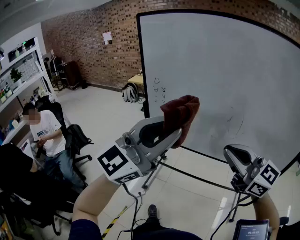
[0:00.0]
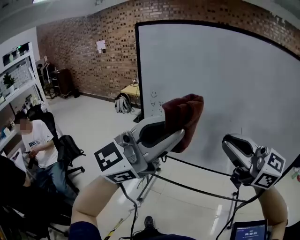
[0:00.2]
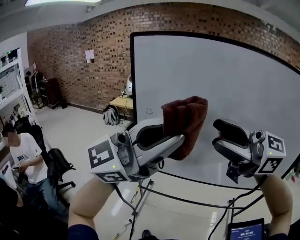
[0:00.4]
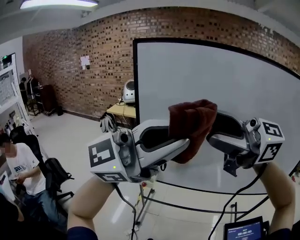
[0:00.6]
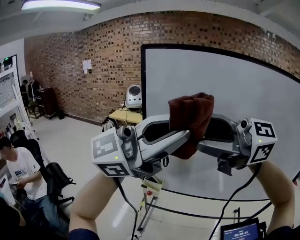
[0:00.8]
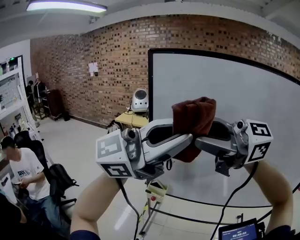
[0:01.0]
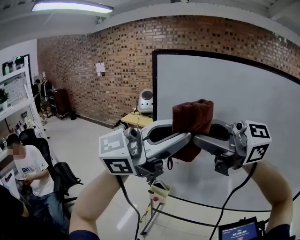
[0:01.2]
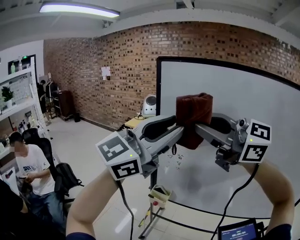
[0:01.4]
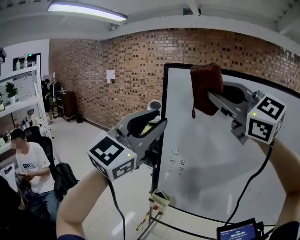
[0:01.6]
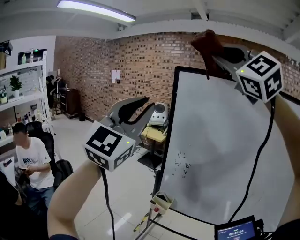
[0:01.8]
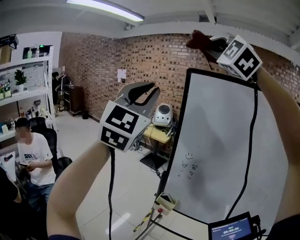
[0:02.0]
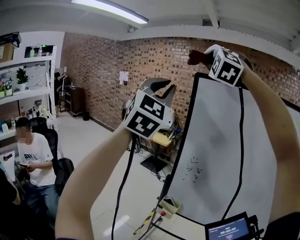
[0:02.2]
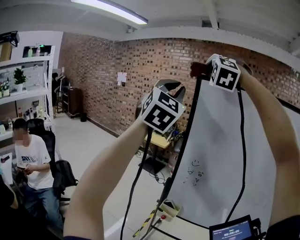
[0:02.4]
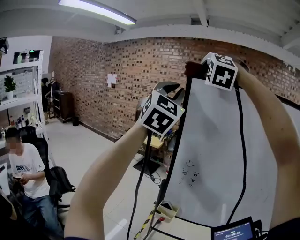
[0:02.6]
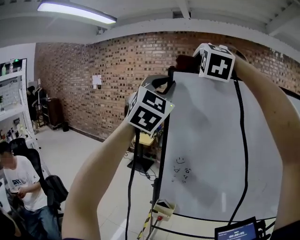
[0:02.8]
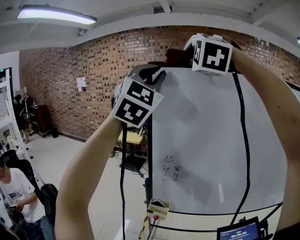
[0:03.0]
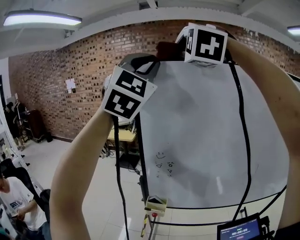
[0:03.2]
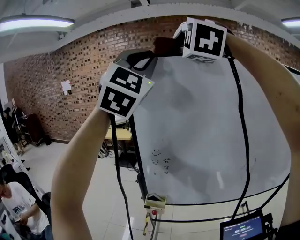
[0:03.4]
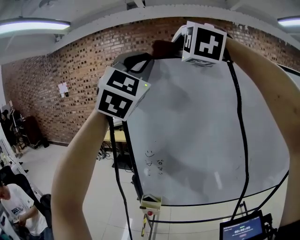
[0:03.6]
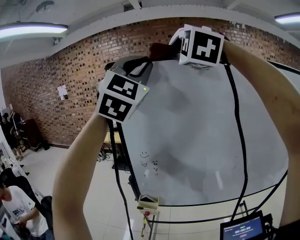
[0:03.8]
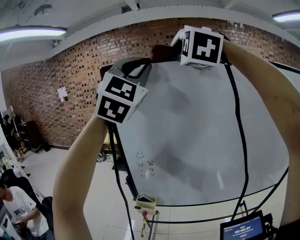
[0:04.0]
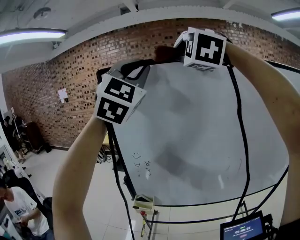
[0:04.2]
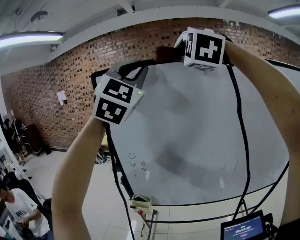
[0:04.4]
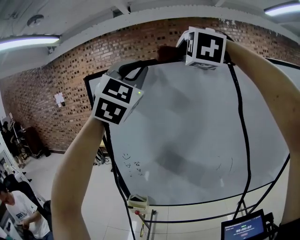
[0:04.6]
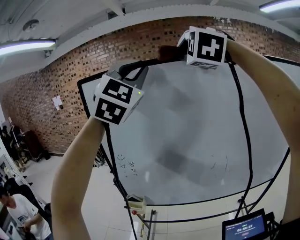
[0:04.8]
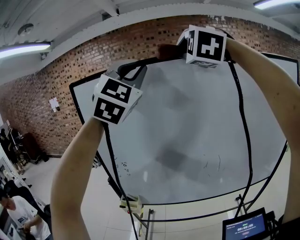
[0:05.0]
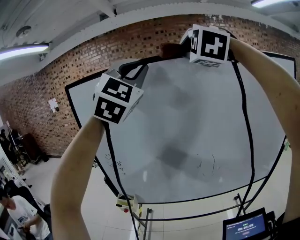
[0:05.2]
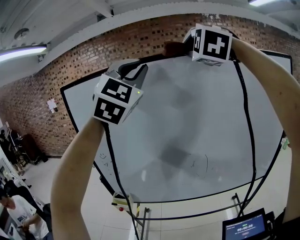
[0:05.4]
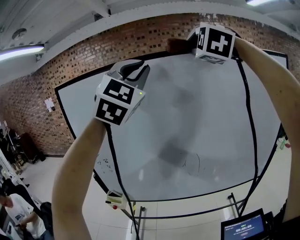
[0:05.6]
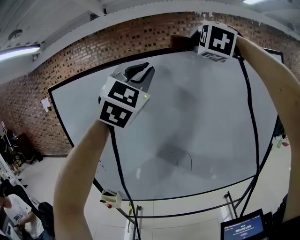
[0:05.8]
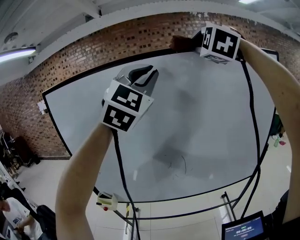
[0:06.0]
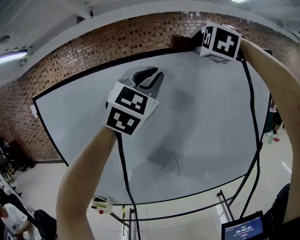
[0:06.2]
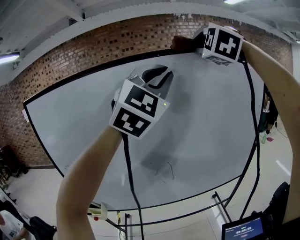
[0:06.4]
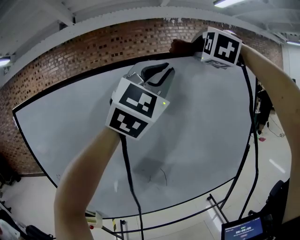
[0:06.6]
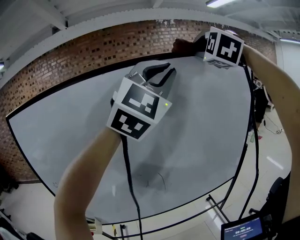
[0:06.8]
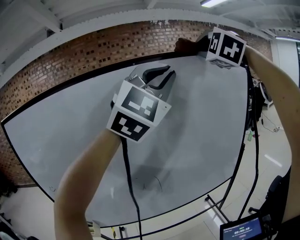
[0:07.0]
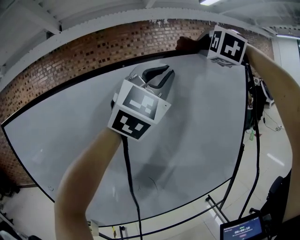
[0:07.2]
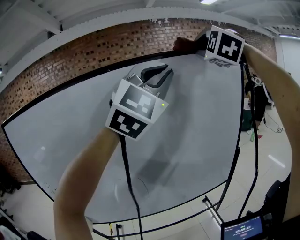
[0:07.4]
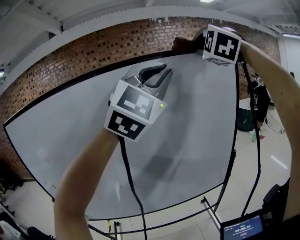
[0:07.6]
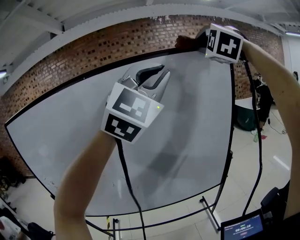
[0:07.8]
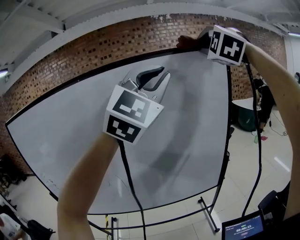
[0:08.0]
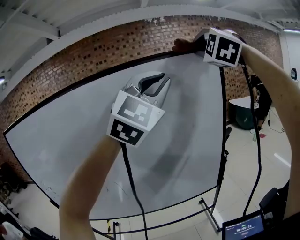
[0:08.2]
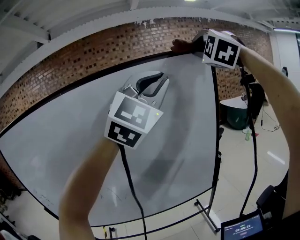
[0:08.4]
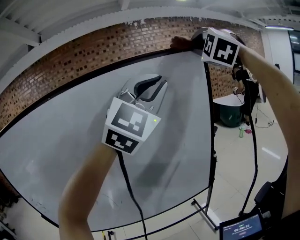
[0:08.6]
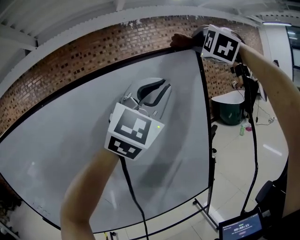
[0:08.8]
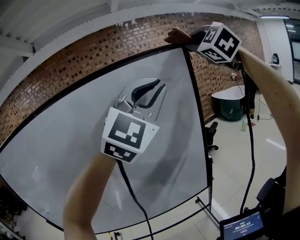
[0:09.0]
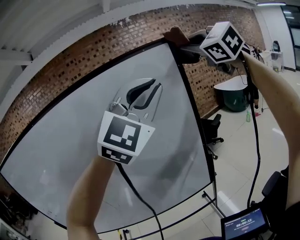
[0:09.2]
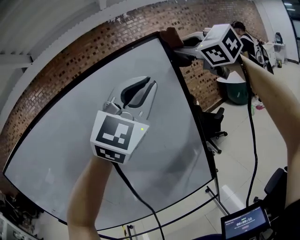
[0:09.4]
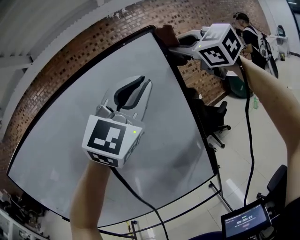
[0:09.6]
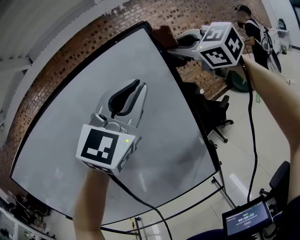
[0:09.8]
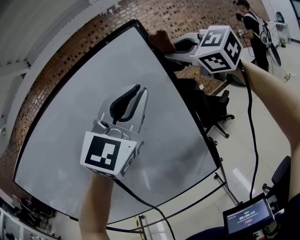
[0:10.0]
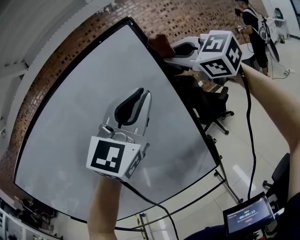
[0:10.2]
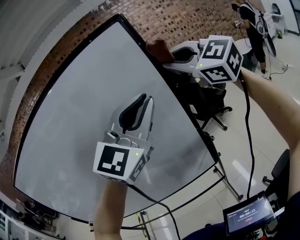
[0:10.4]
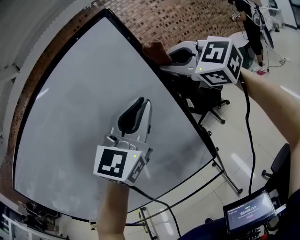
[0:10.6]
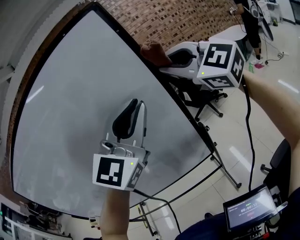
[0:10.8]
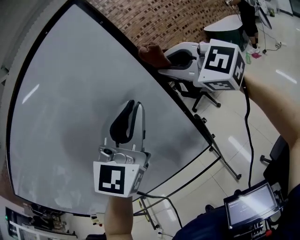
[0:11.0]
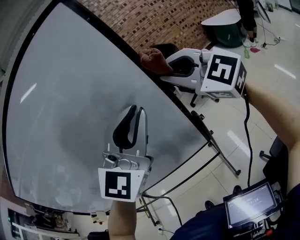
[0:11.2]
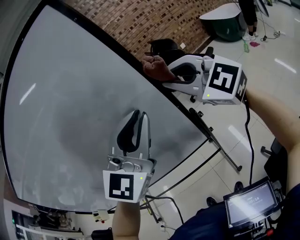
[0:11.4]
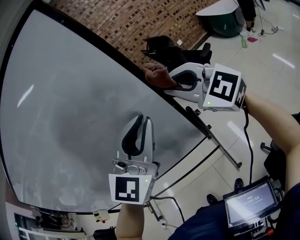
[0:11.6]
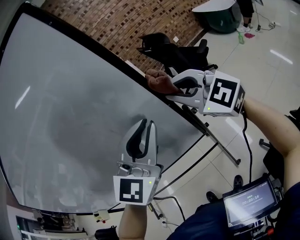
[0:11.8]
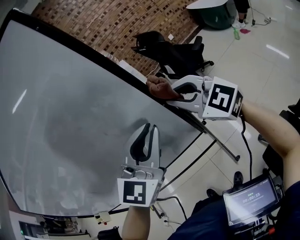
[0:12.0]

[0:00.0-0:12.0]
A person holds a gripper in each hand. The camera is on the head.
0:00.0 to 0:01.6: The left gripper shifts by about 30 cm, and turns by about 20 degrees; the right gripper goes some 30 cm upward, rotates some 30 degrees, and opens and closes again.
0:01.6 to 0:03.0: The two grippers go about 20 cm forward and upward. The right gripper turns by about 70 degrees. The left gripper changes its angle by about 30 degrees.
0:03.0 to 0:04.4: Both grippers travel together to the right, approximately 15 cm.
0:04.4 to 0:06.0: Both grippers travel together to the right, some 30 cm.
0:06.0 to 0:07.6: The right gripper goes some 25 cm to the right and forward, while the left gripper goes roughly 25 cm to the right.
0:07.6 to 0:09.0: Both grippers travel together to the right and forward, about 20 cm. The right gripper swivels some 30 degrees.
0:09.0 to 0:10.4: The left gripper is displaced downward and to the right by roughly 10 cm; the right gripper is displaced downward by some 15 cm, and turns by about 40 degrees.
0:10.4 to 0:12.0: Both grippers move downward, about 25 cm.

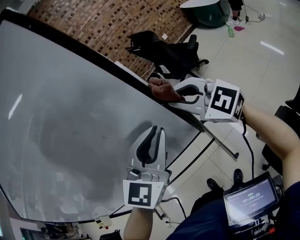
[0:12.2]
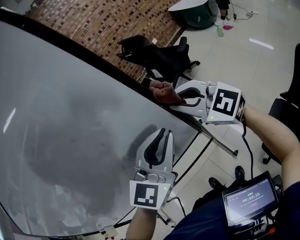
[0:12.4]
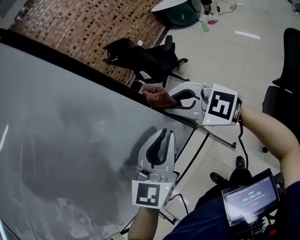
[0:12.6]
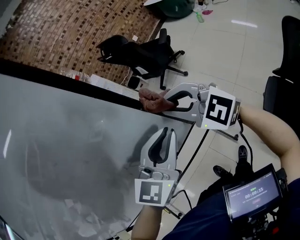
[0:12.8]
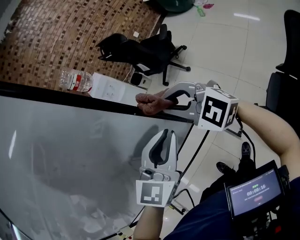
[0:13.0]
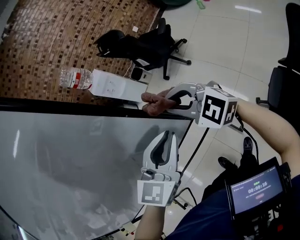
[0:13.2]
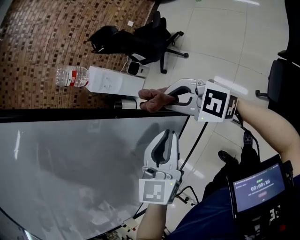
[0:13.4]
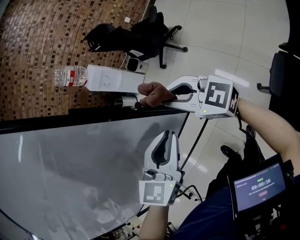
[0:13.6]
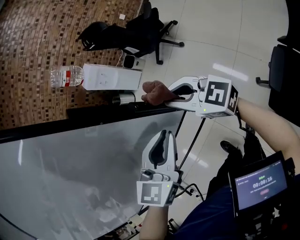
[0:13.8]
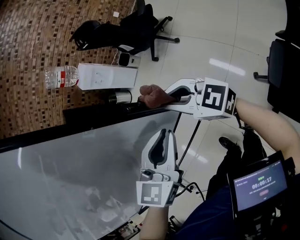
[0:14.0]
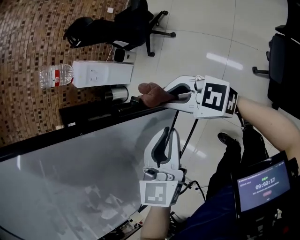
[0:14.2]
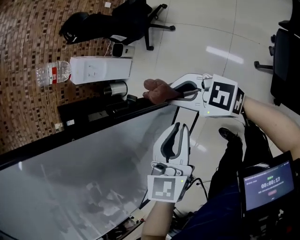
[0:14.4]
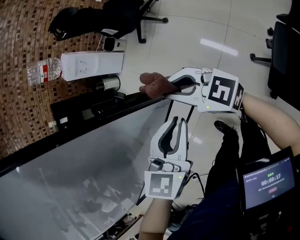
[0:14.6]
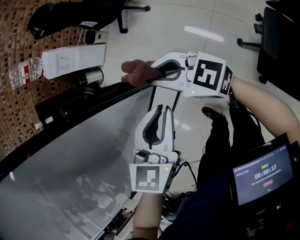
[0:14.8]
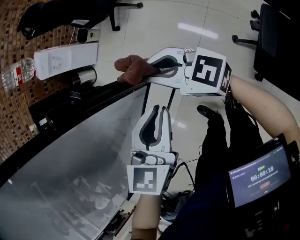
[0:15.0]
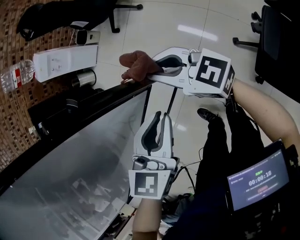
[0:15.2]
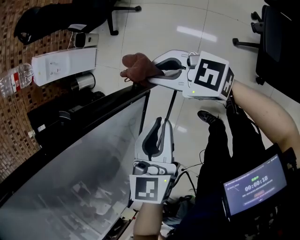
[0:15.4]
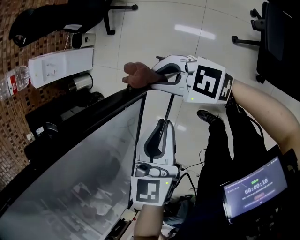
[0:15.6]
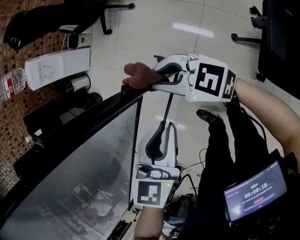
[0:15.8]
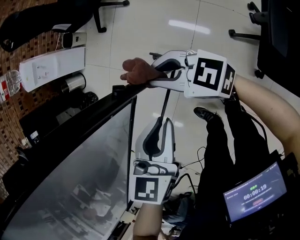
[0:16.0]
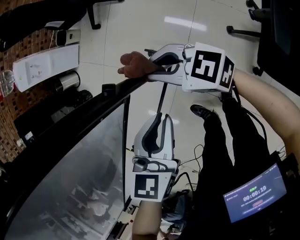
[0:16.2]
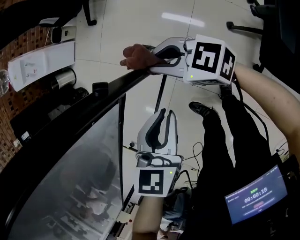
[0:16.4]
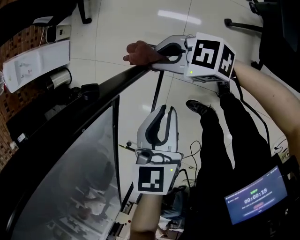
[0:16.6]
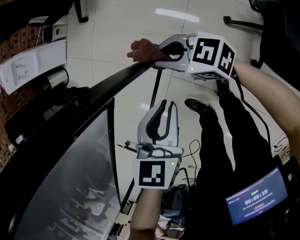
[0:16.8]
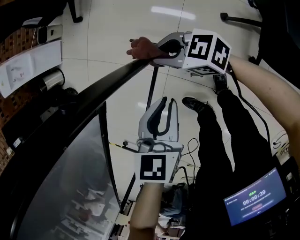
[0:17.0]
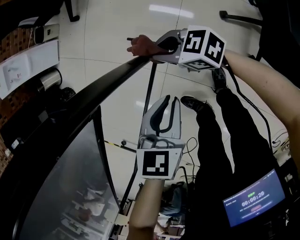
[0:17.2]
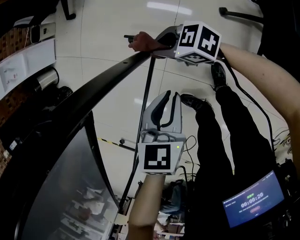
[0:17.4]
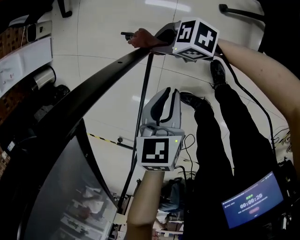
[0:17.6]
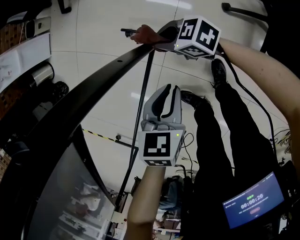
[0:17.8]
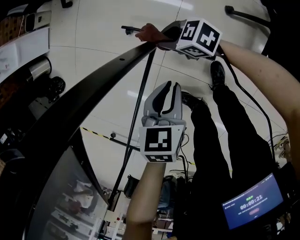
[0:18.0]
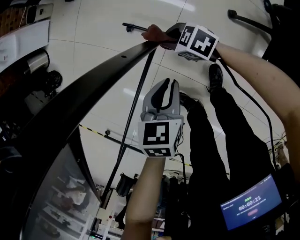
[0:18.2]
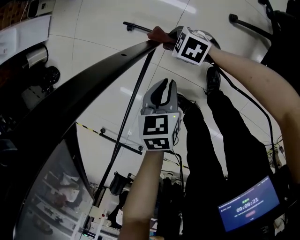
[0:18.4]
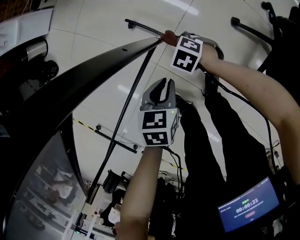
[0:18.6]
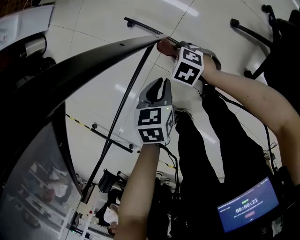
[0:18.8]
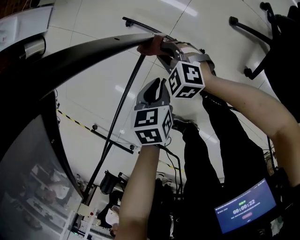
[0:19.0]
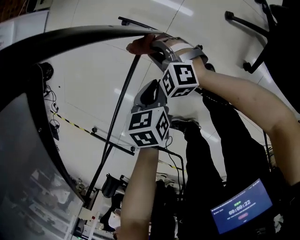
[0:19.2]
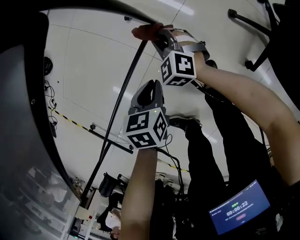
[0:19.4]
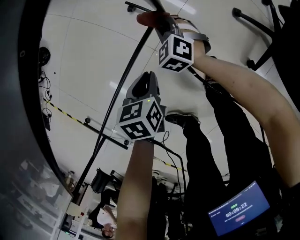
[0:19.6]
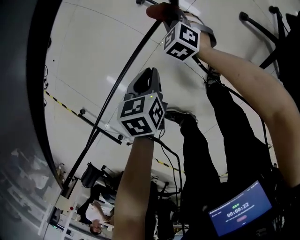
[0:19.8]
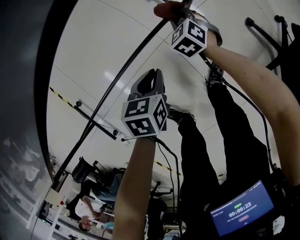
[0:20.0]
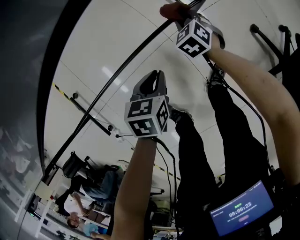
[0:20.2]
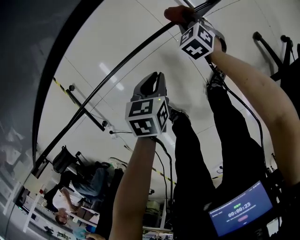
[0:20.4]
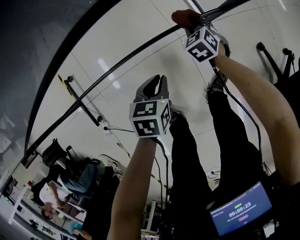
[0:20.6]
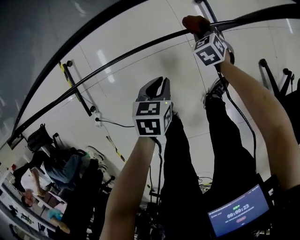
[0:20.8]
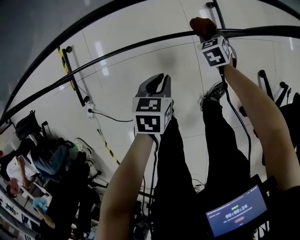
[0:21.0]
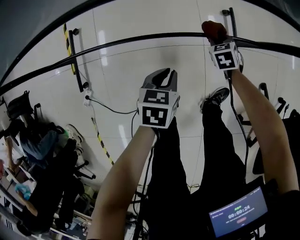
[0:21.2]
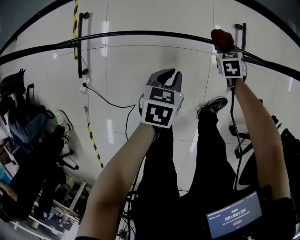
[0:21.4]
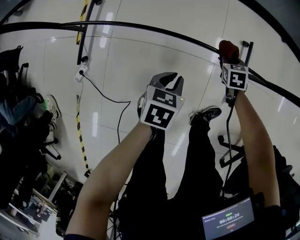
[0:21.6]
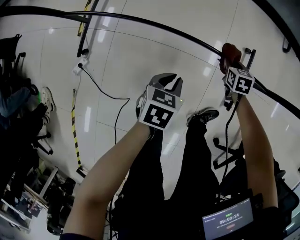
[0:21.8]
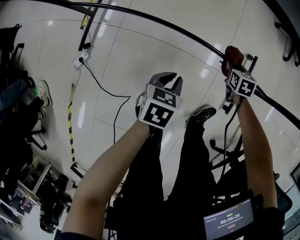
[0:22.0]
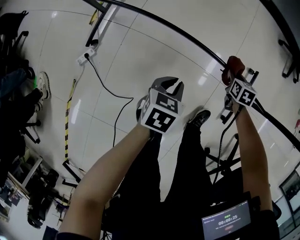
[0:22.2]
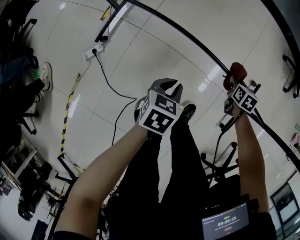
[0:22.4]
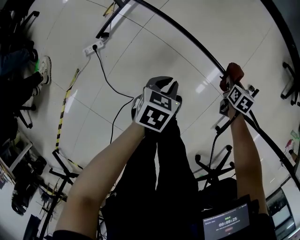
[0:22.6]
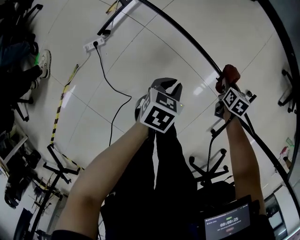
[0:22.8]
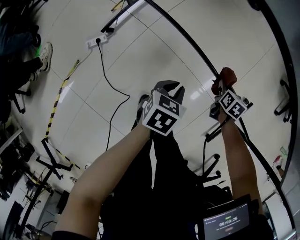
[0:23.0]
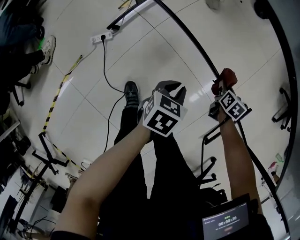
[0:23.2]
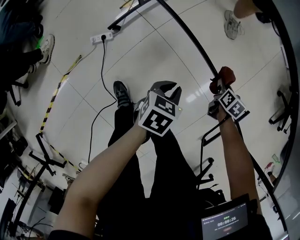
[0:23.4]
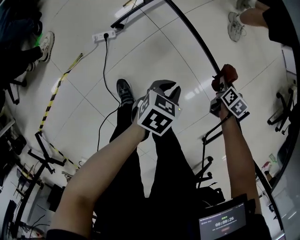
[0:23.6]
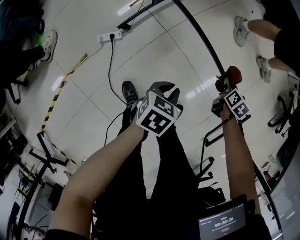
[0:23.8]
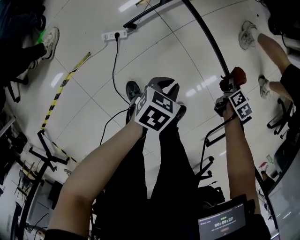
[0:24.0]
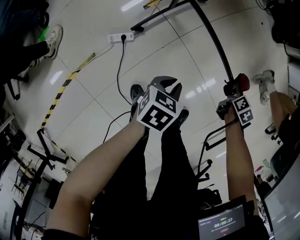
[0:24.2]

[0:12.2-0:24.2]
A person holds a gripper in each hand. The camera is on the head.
0:12.2 to 0:13.8: Both grippers move downward, approximately 20 cm. The left gripper swivels approximately 20 degrees. Meanwhile the right gripper rotates approximately 20 degrees.
0:13.8 to 0:15.2: Both grippers travel together downward, about 15 cm.
0:15.2 to 0:16.6: Both grippers travel together downward, about 15 cm.
0:16.6 to 0:18.2: The left gripper moves downward, roughly 10 cm, while the right gripper shifts roughly 15 cm downward, and points its fingers approximately 30 degrees further downward.
0:18.2 to 0:19.8: The right gripper swings up and down, approximately 10 cm each way, with 2 reversals, and swivels approximately 40 degrees, while the left gripper moves to the left and backward, about 15 cm, and turns by approximately 20 degrees.
0:19.8 to 0:21.2: Both grippers travel together to the left and backward, roughly 20 cm. The left gripper turns by about 30 degrees.
0:21.2 to 0:22.6: The grippers both shift to the left by roughly 20 cm. The left gripper rotates some 20 degrees.
0:22.6 to 0:24.2: The two grippers go some 20 cm to the left.
